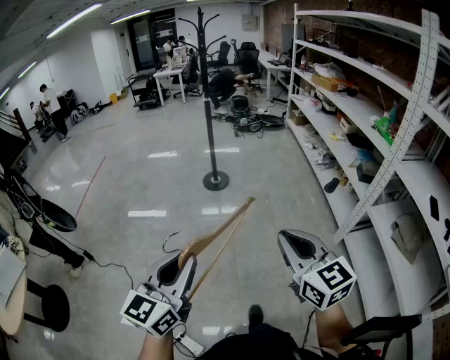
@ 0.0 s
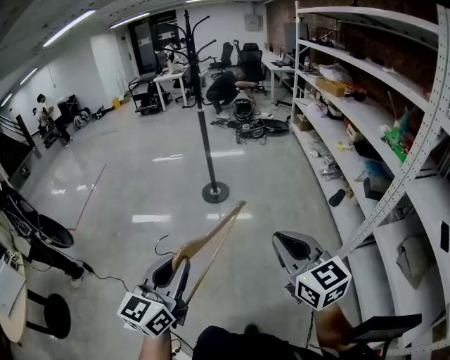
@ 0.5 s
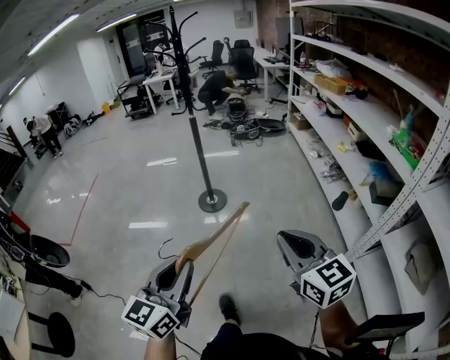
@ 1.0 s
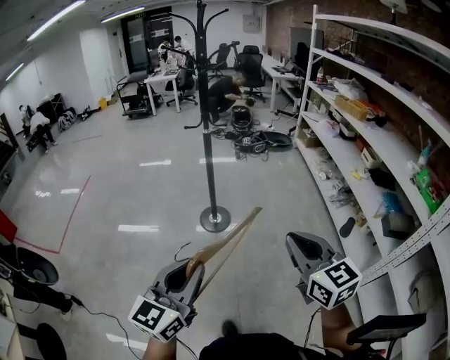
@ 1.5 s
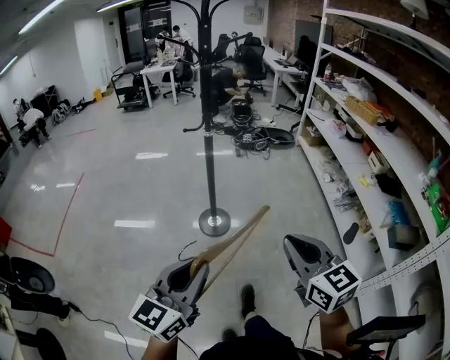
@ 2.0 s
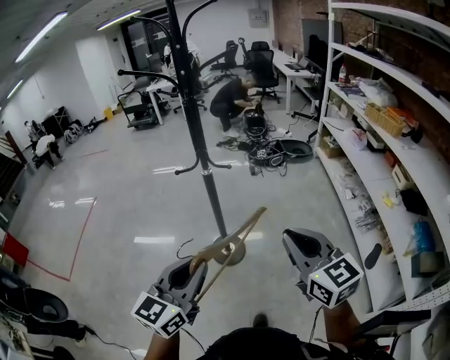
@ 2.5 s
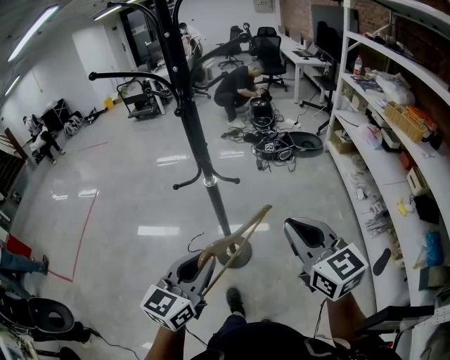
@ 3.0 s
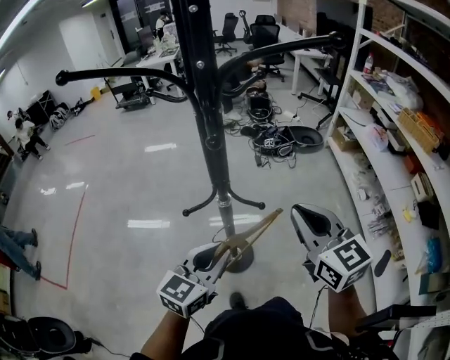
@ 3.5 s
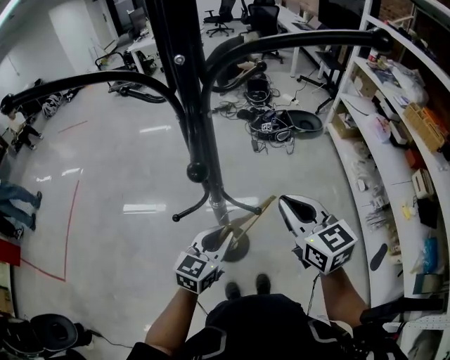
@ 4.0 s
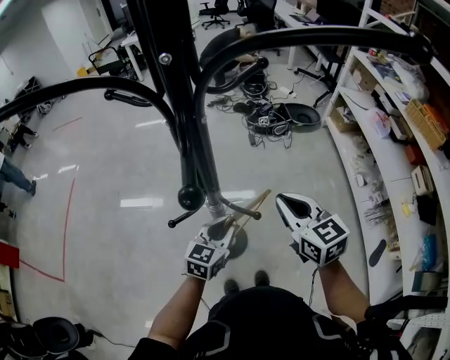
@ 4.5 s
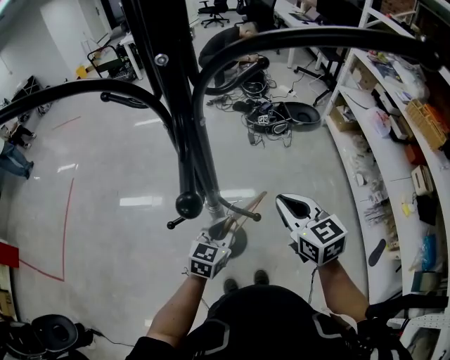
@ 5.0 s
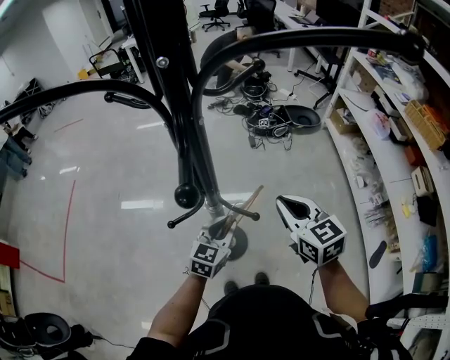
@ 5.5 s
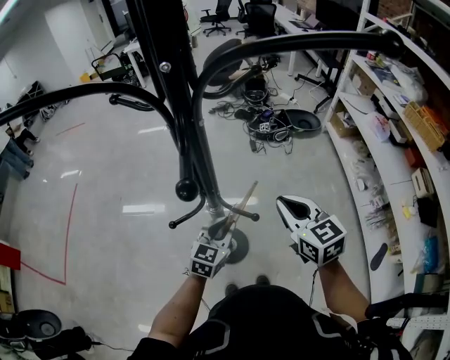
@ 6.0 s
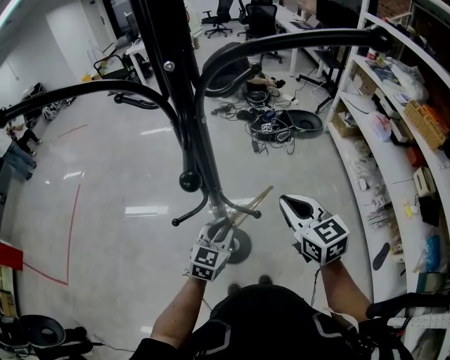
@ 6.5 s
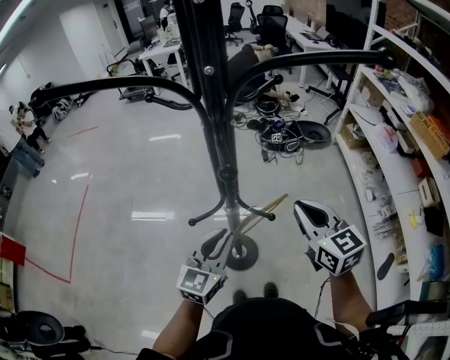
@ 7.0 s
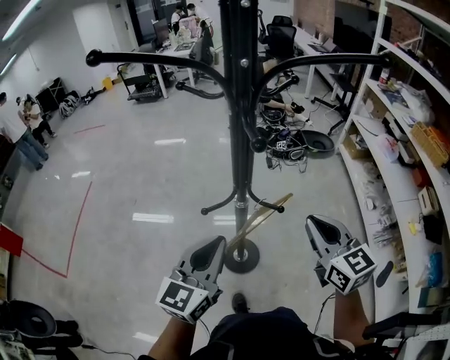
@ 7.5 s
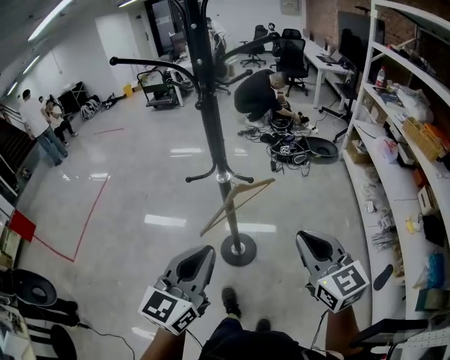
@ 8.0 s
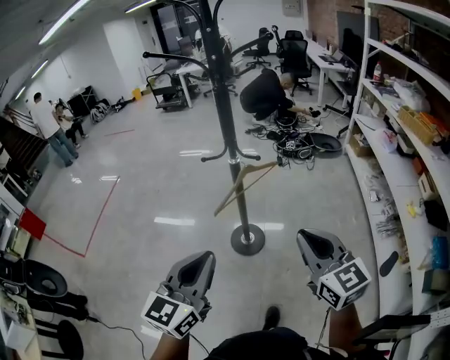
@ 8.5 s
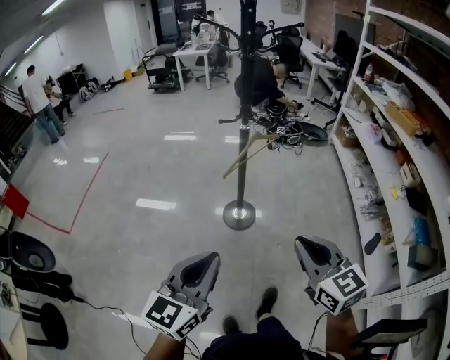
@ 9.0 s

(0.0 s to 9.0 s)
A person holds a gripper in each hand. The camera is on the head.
0.0 s - 2.0 s: The two grippers travel together, forward, approximately 60 cm.
2.0 s - 4.5 s: The pair of grippers is taken forward, about 60 cm. The left gripper swivels about 20 degrees.
4.5 s - 7.0 s: The left gripper goes about 10 cm upward and backward.
7.0 s - 9.0 s: Both grippers are carried backward, about 50 cm.

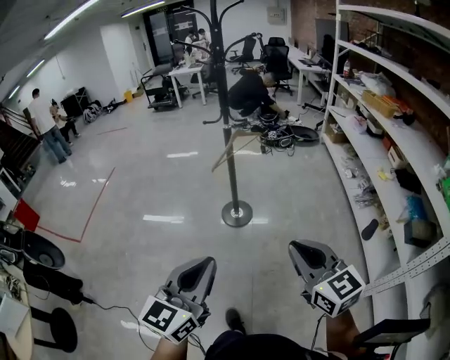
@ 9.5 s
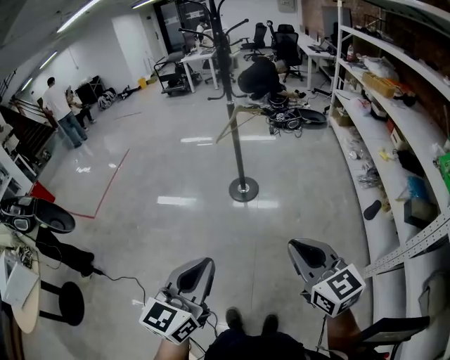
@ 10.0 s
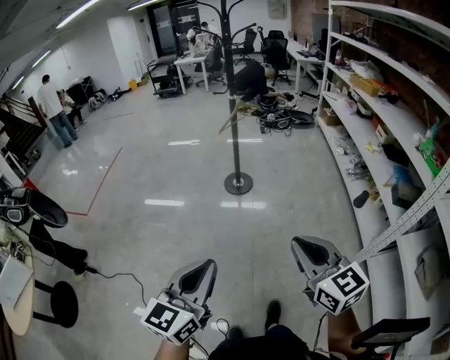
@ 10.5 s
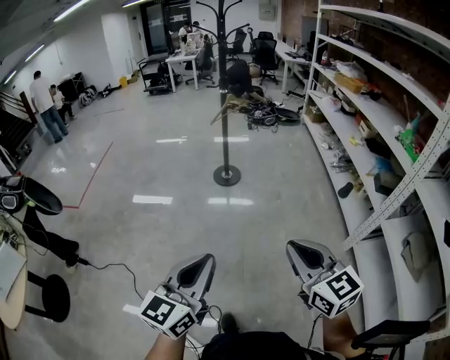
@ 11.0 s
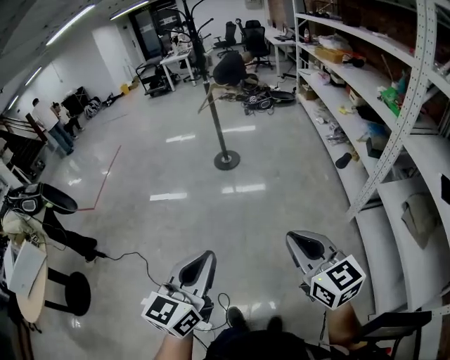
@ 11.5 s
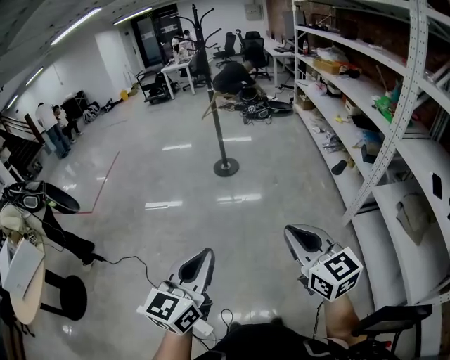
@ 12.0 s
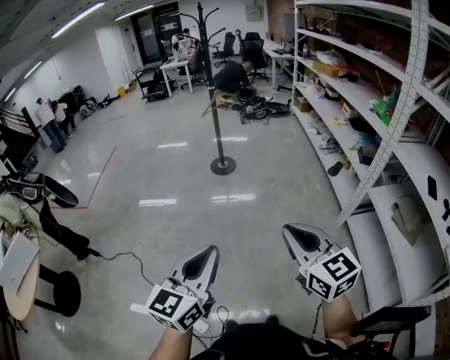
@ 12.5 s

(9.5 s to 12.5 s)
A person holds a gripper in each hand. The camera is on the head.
9.5 s - 11.0 s: The grippers both shift backward by roughly 35 cm.
11.0 s - 12.5 s: The two grippers go approximately 15 cm backward.

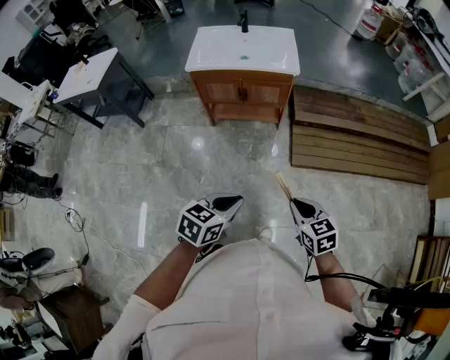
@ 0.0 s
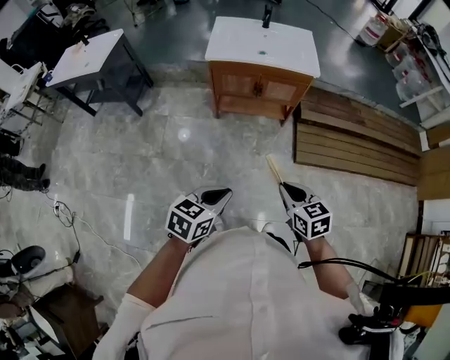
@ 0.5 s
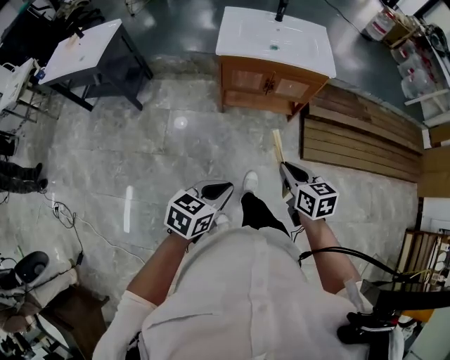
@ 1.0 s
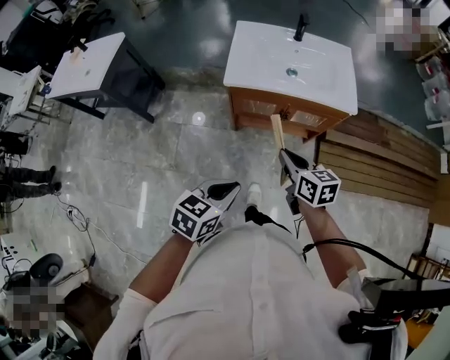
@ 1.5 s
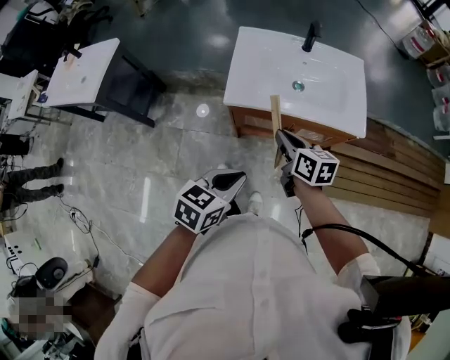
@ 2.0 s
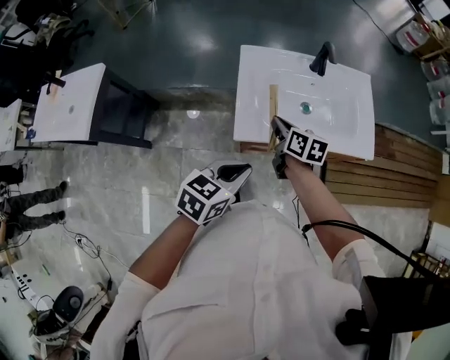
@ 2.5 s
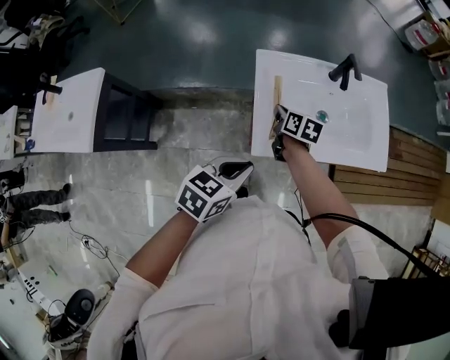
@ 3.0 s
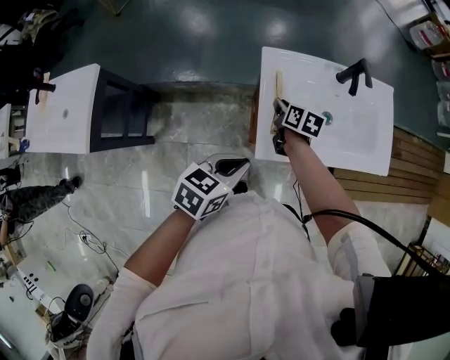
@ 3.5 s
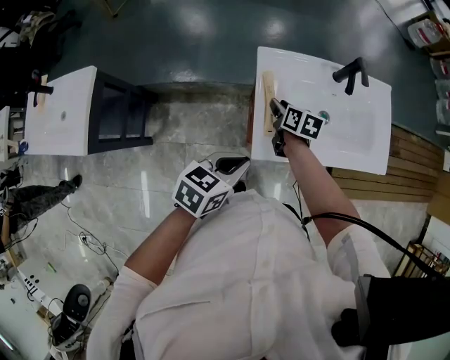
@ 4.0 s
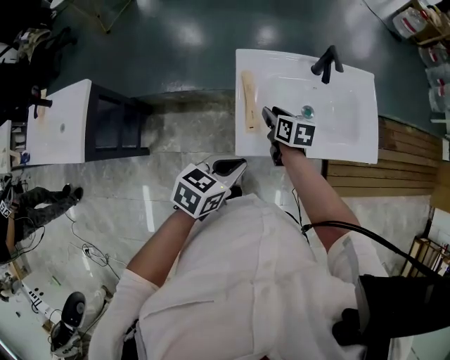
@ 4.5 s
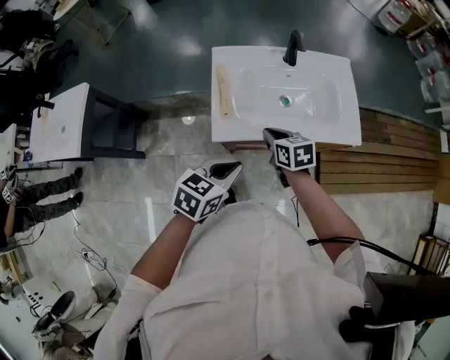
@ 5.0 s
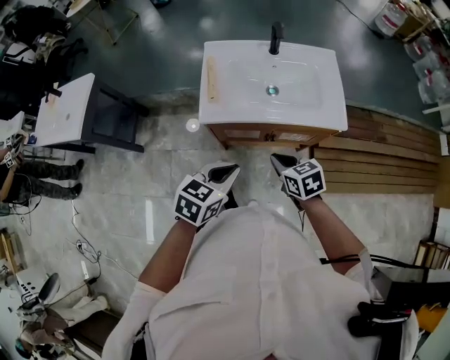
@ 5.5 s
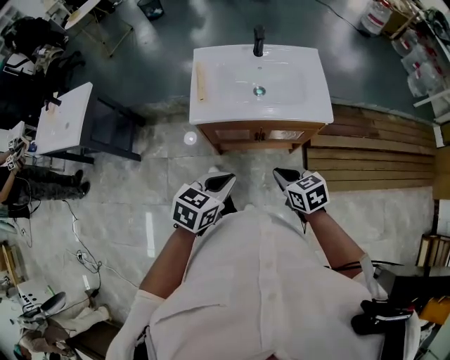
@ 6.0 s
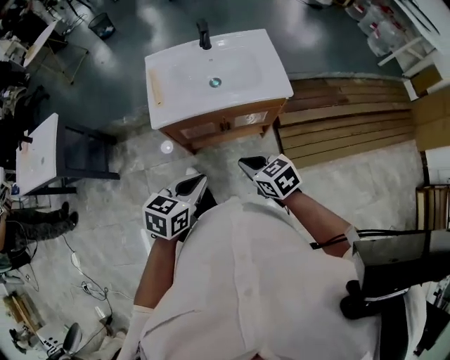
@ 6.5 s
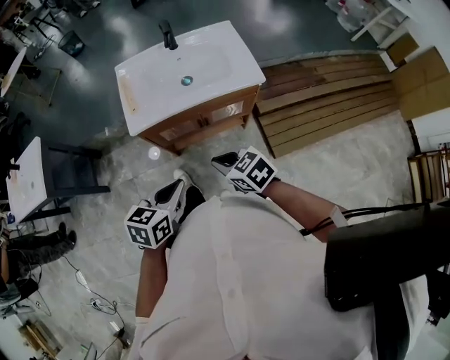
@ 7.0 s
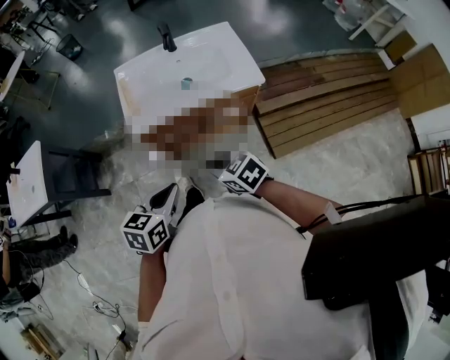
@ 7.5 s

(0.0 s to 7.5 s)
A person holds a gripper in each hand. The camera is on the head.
0.0 s - 2.0 s: The two grippers travel together, forward and to the left, roughly 60 cm. The right gripper turns by approximately 30 degrees.
2.0 s - 4.0 s: The right gripper heads forward, to the left and downward, covering approximately 35 cm, changes its angle by roughly 20 degrees, and opens, while the left gripper moves forward and to the left, about 30 cm.
4.0 s - 5.5 s: The right gripper shifts roughly 40 cm backward and to the right, changes its angle by about 40 degrees, and closes; the left gripper is displaced to the right and backward by some 25 cm.
5.5 s - 7.5 s: Both grippers move backward, some 10 cm.

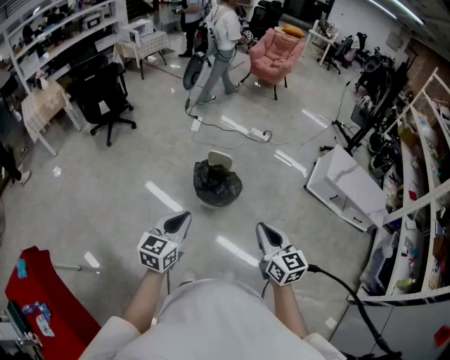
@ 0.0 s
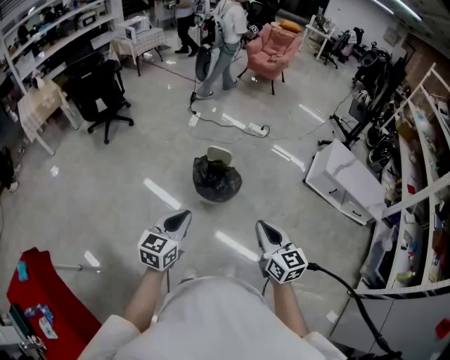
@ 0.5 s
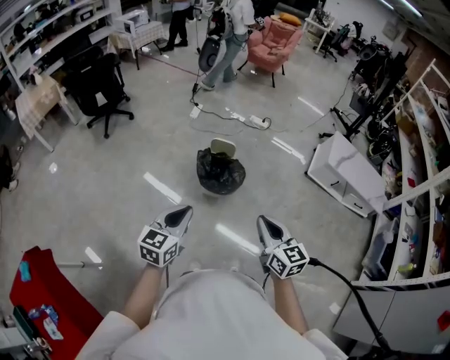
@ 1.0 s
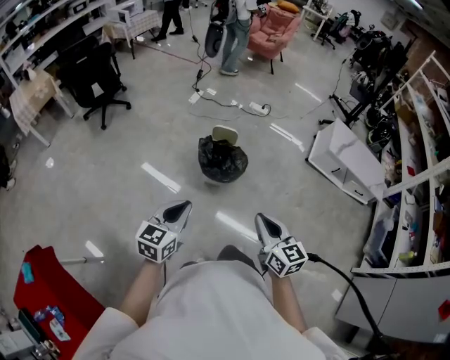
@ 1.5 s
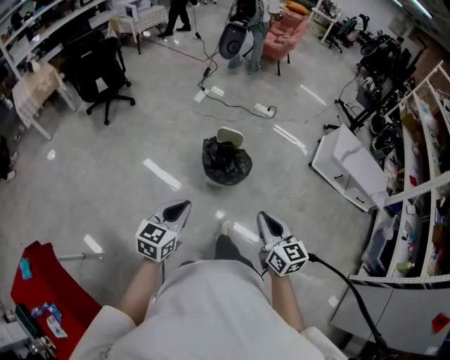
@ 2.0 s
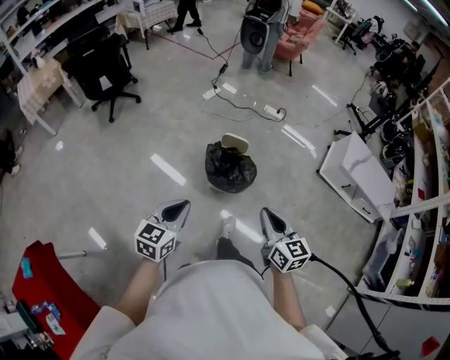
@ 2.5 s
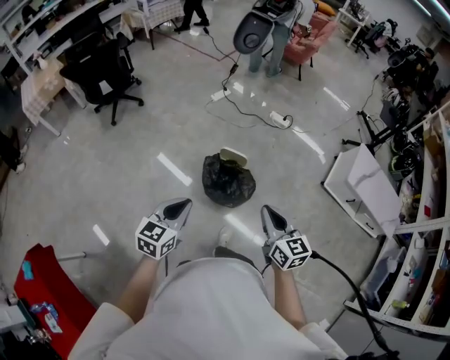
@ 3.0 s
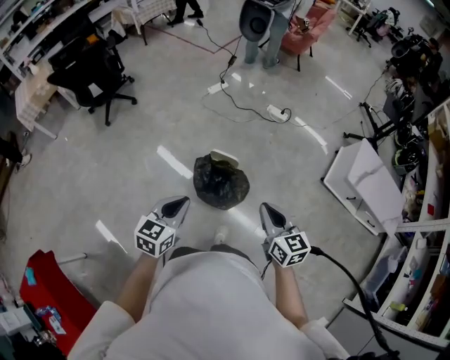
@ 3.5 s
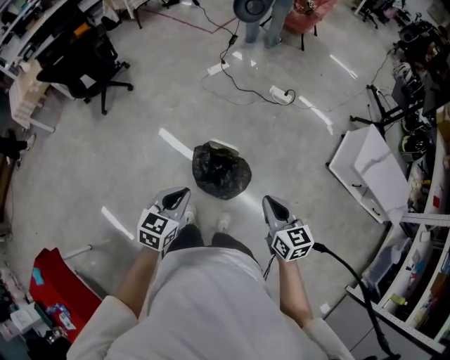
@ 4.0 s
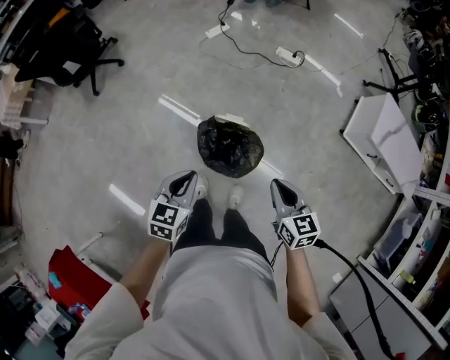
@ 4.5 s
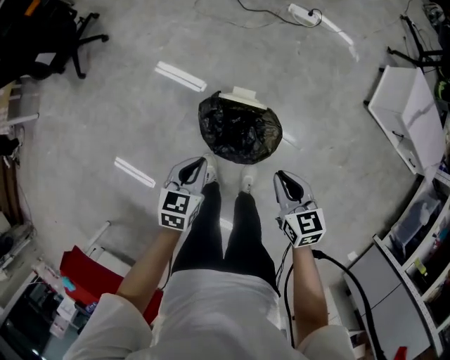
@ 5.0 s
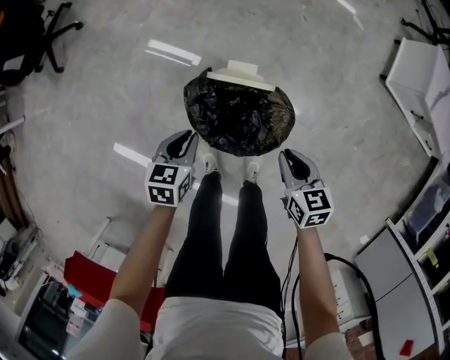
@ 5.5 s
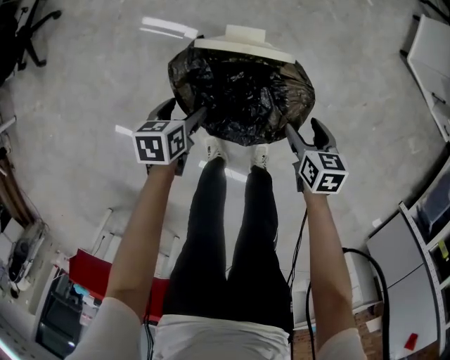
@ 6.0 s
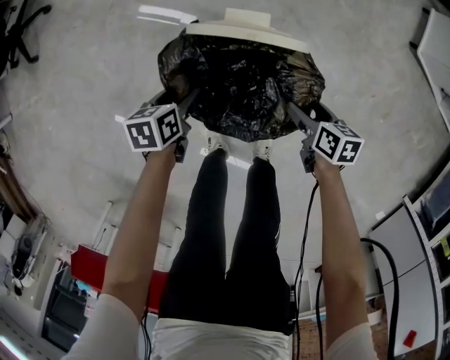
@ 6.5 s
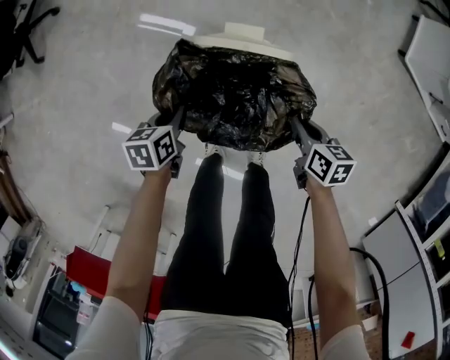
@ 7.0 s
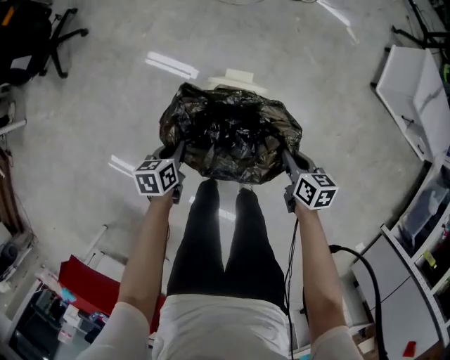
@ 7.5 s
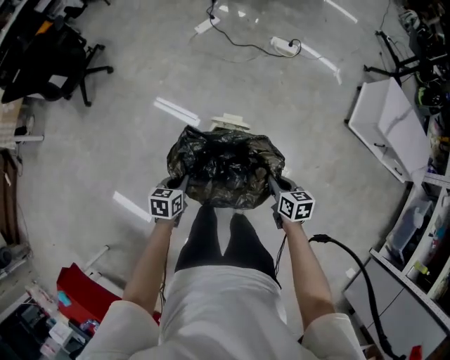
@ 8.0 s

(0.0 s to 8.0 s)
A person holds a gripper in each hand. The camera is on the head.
0.0 s - 2.0 s: The grippers both shift to the left by about 10 cm.
2.0 s - 4.0 s: Both grippers travel together forward, some 35 cm.
4.0 s - 6.0 s: The two grippers go about 60 cm downward. The left gripper swivels approximately 40 degrees, and opens its fingers. The right gripper angles its fingers downward, by roughly 30 degrees, and opens its fingers.
6.0 s - 8.0 s: Both grippers travel together upward, approximately 30 cm. The left gripper closes. Meanwhile the right gripper closes its fingers.
